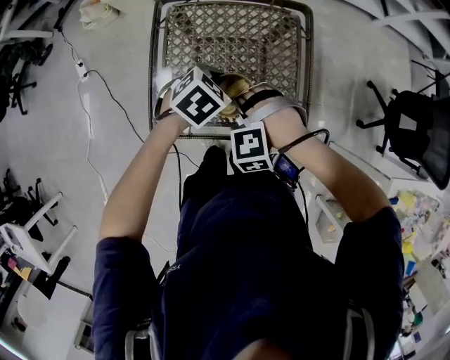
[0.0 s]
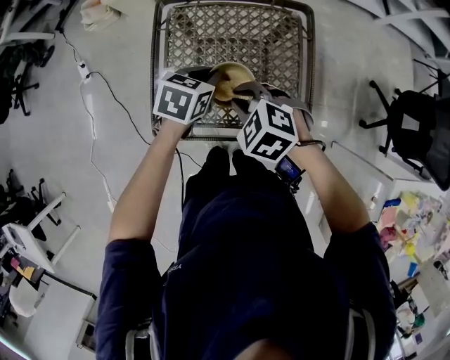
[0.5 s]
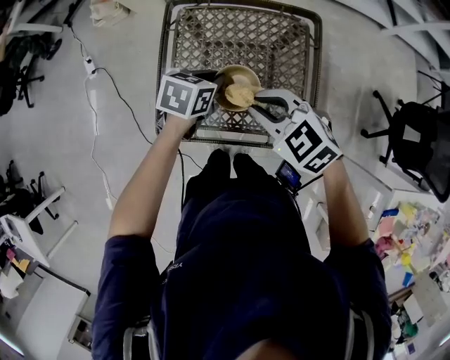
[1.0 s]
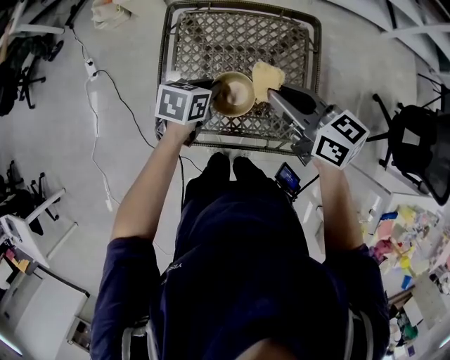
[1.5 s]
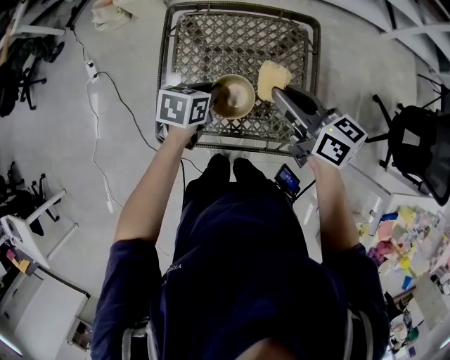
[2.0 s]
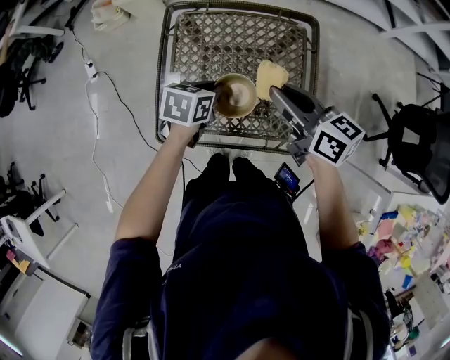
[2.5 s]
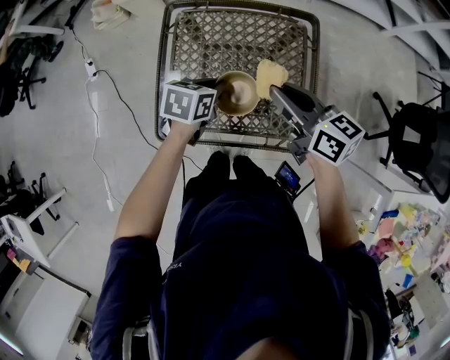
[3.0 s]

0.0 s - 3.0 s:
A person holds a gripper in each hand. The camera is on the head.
0.0 s - 1.5 s: The right gripper is displaced upward by approximately 15 cm, and rotates around the line of its fingers by roughly 90 degrees, clockwise from behind. Meanwhile the left gripper rotates approximately 40 degrees.
1.5 s - 3.0 s: The grippers make only small movements.

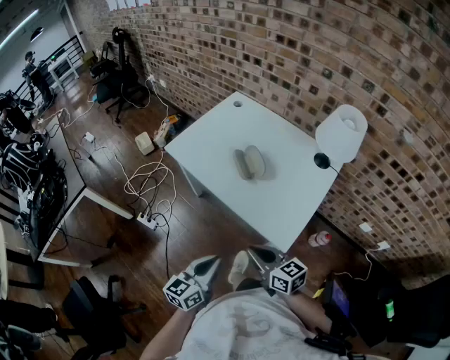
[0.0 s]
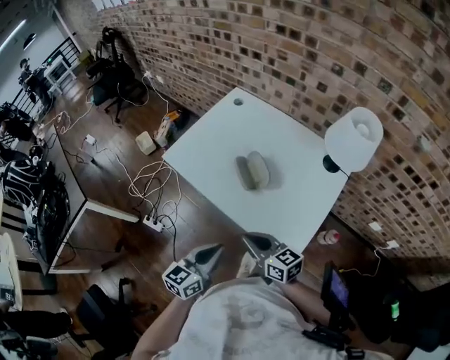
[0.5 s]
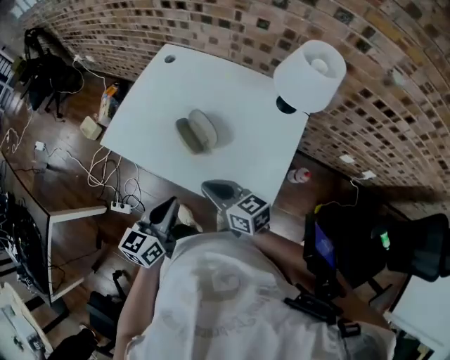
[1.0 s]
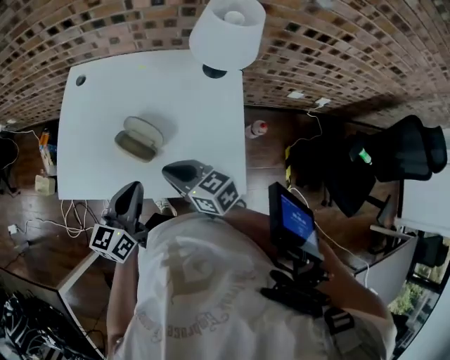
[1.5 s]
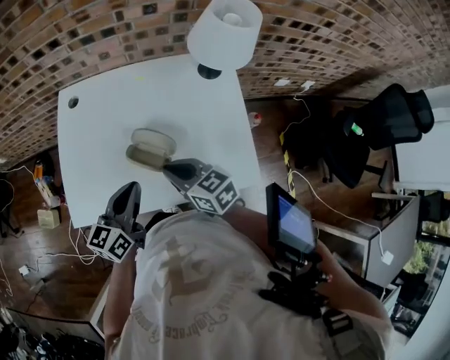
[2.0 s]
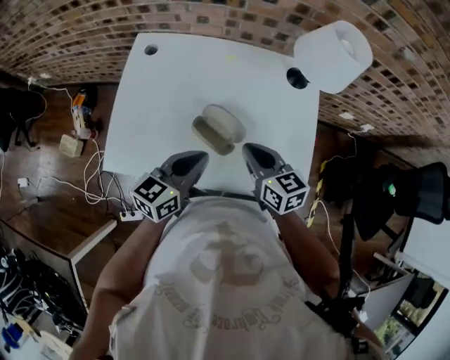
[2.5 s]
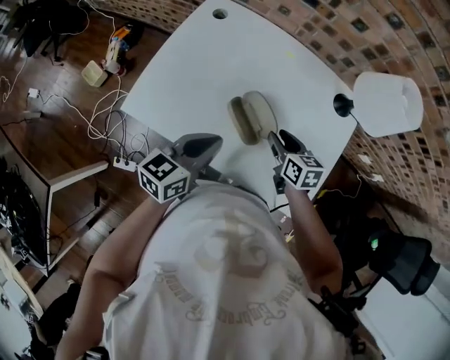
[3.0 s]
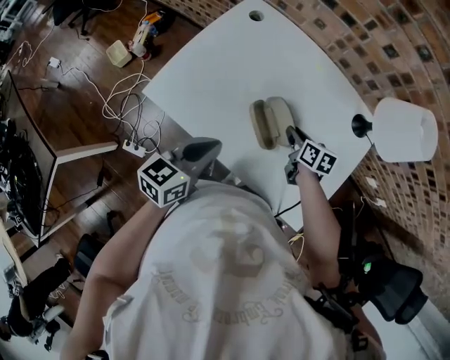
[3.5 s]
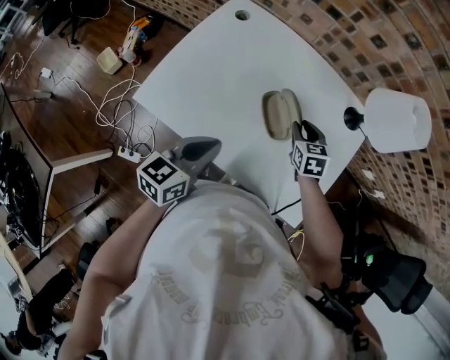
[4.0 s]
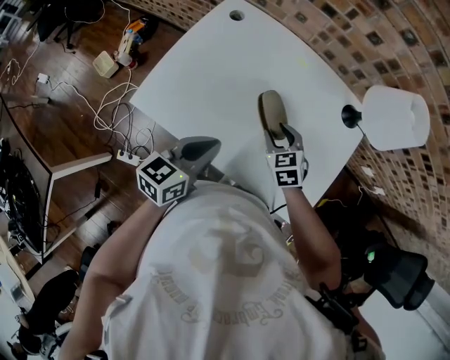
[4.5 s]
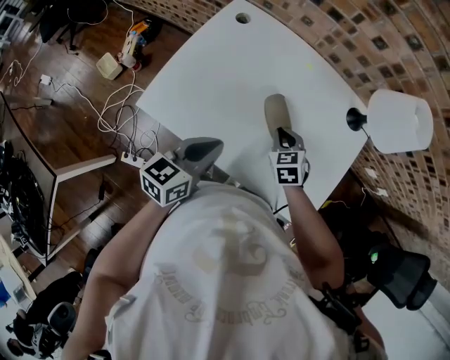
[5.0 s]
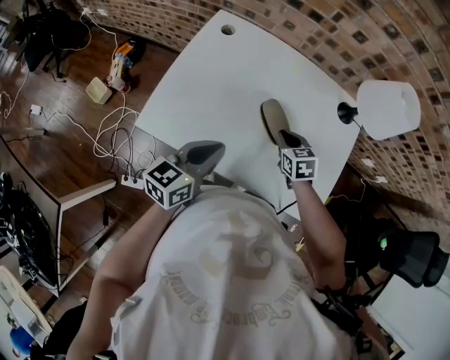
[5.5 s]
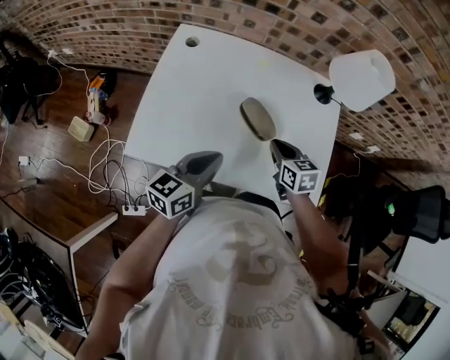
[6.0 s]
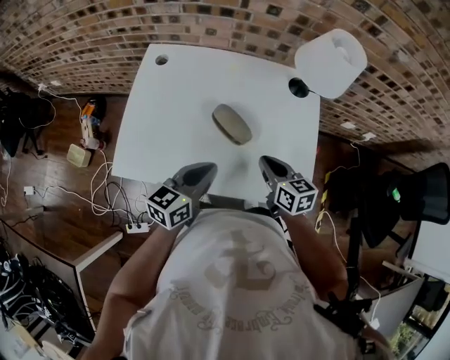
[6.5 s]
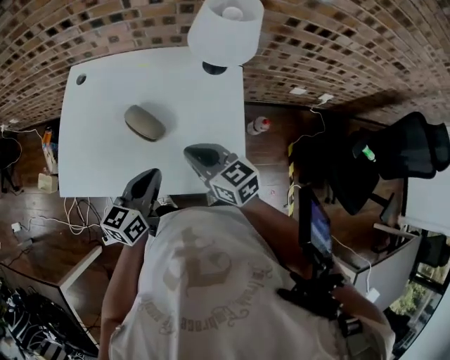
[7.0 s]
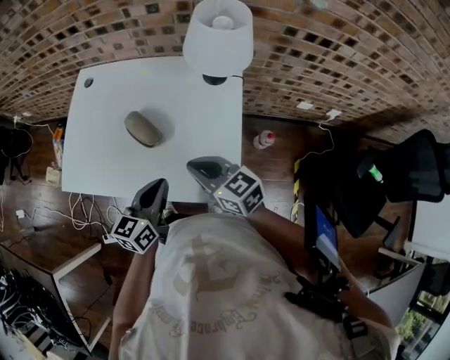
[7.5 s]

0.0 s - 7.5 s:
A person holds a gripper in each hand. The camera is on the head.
0.0 s - 2.0 s: The right gripper ends up roughly 30 cm from where it was, and swivels approximately 40 degrees. Meanwhile the left gripper shifts by approximately 40 cm, and changes its angle by some 40 degrees.
2.0 s - 4.0 s: The right gripper shifts about 20 cm forward, downward and to the right, changes its angle by some 30 degrees, and opens.
4.0 s - 5.5 s: The right gripper is displaced to the left by some 5 cm, and closes up.
5.5 s - 7.5 s: The left gripper moves to the right, some 25 cm. Meanwhile the right gripper heads to the right, backward and upward, covering about 25 cm, and tips its fingers upward by roughly 30 degrees.

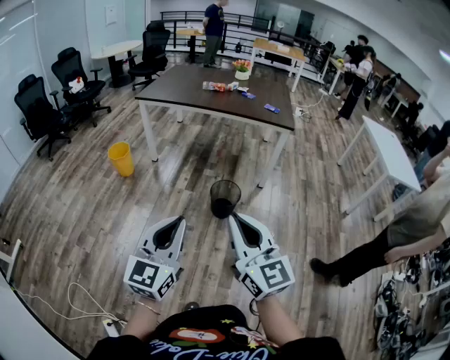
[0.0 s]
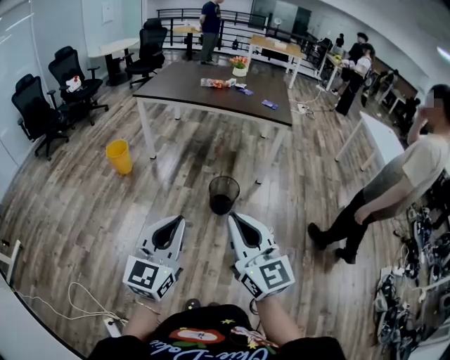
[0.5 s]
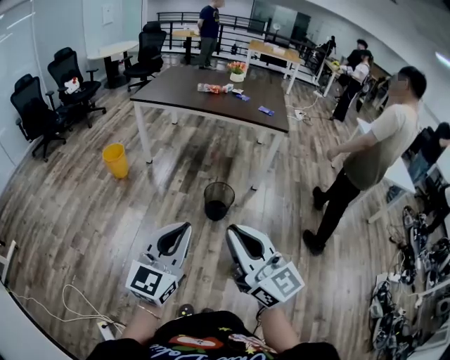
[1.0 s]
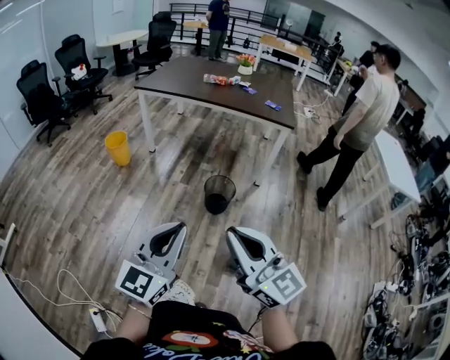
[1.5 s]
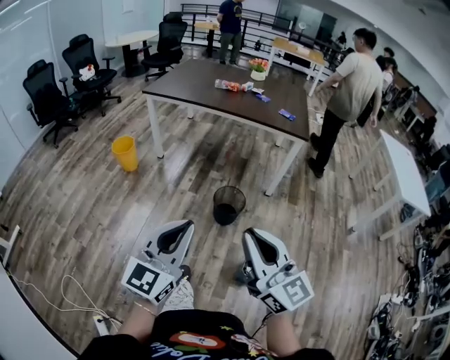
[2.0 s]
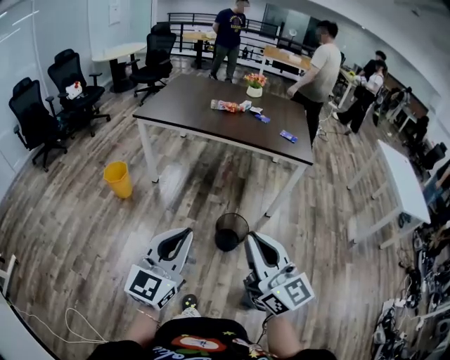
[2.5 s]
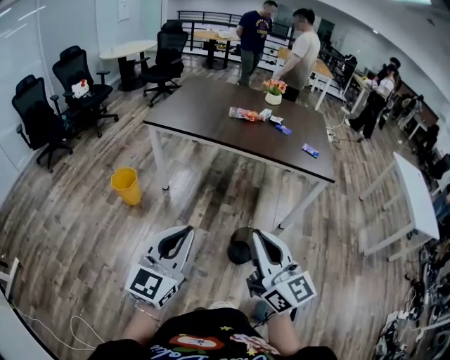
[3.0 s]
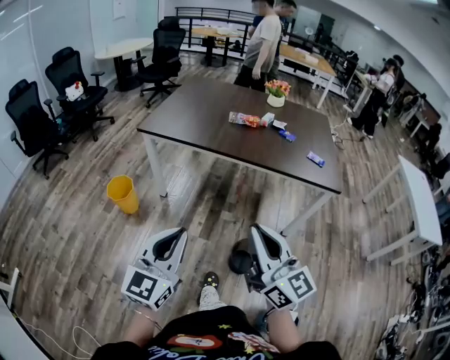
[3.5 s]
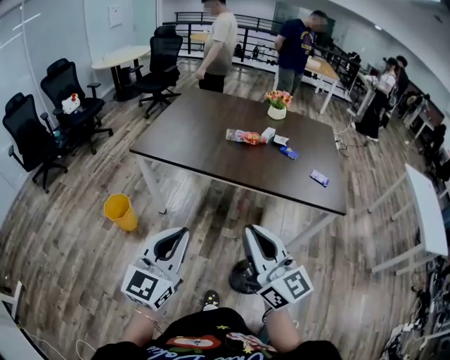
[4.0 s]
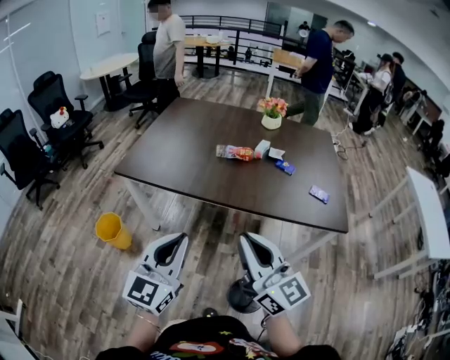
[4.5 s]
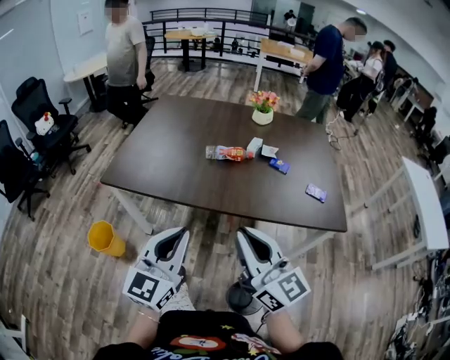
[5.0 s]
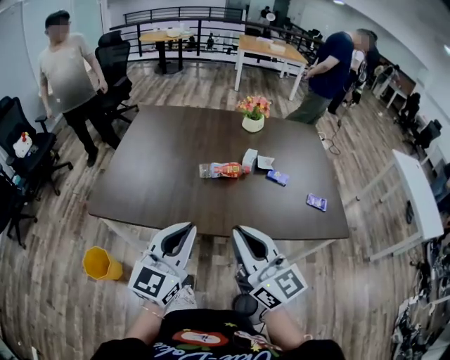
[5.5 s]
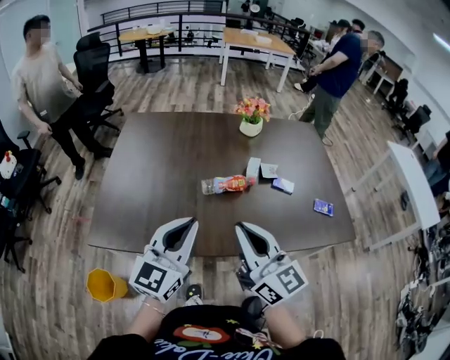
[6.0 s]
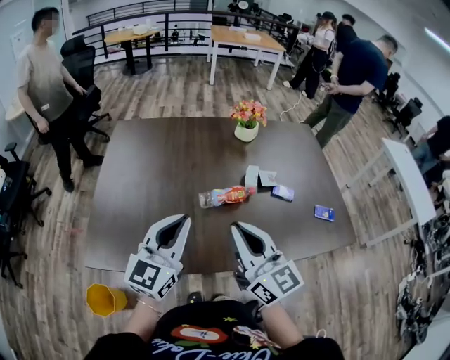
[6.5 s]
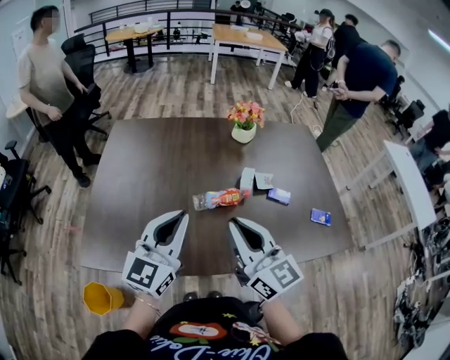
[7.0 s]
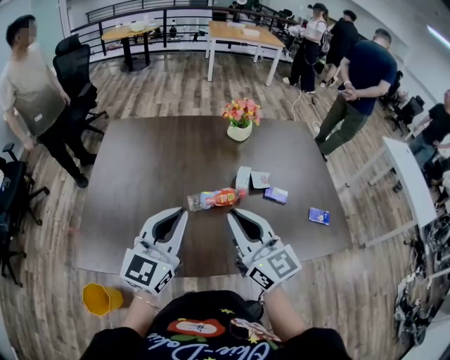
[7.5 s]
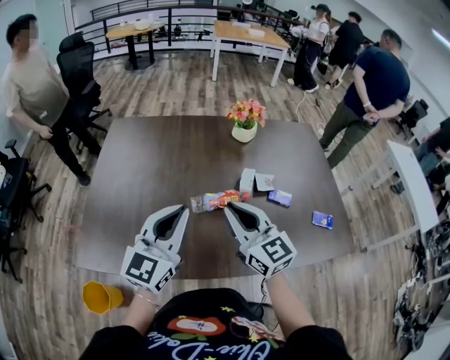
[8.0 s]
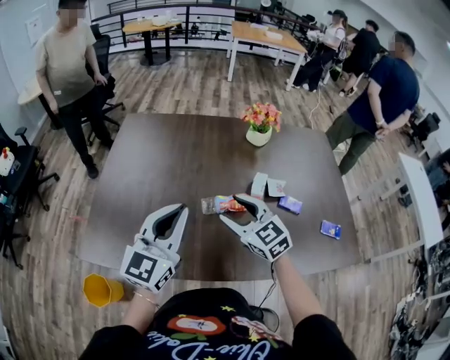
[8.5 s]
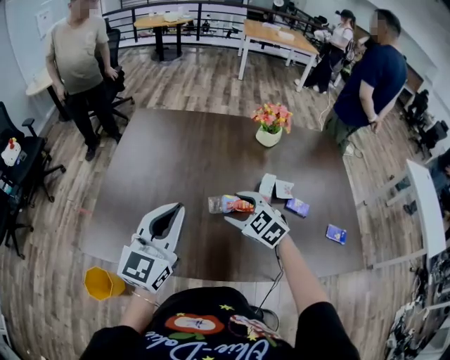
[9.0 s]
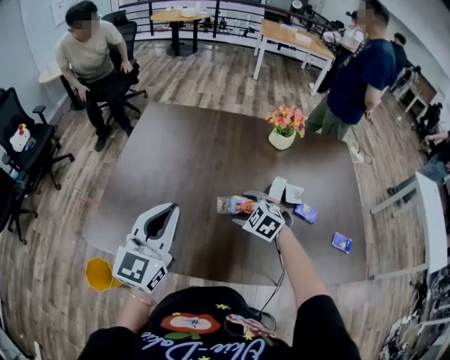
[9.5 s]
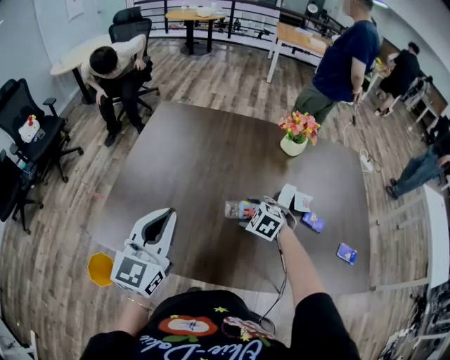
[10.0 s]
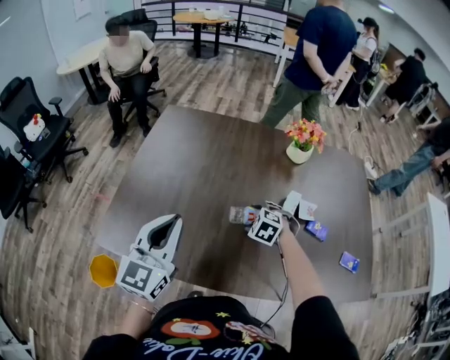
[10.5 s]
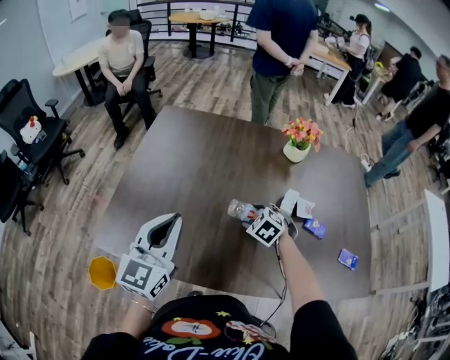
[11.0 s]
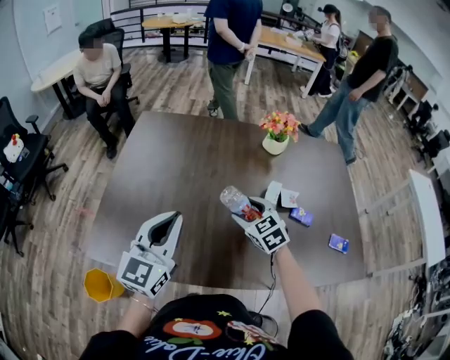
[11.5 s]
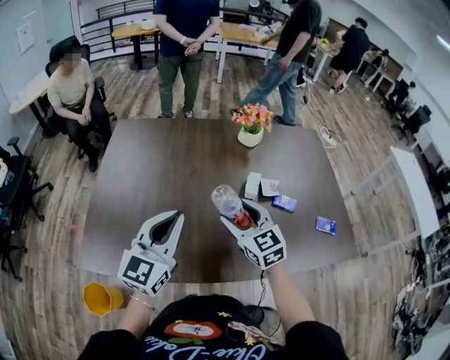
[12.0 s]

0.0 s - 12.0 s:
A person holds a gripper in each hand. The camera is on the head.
0.0 s - 2.0 s: Both grippers move forward, about 5 cm.
2.0 s - 4.0 s: Both grippers are carried forward, some 50 cm.
4.0 s - 6.0 s: The grippers both shift forward by approximately 40 cm. The left gripper swivels about 20 degrees.
6.0 s - 8.0 s: The two grippers go approximately 15 cm forward.
8.0 s - 10.0 s: The right gripper travels downward and forward by some 25 cm, tips its fingers downward by approximately 60 degrees, and opens up. The left gripper moves to the left, roughly 10 cm.
10.0 s - 12.0 s: The right gripper moves upward, some 15 cm, and tilts its fingers roughly 40 degrees upward; the left gripper is displaced to the right by approximately 5 cm.

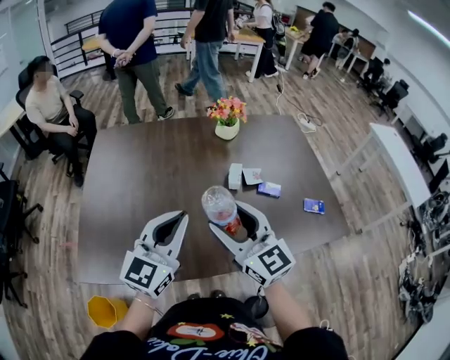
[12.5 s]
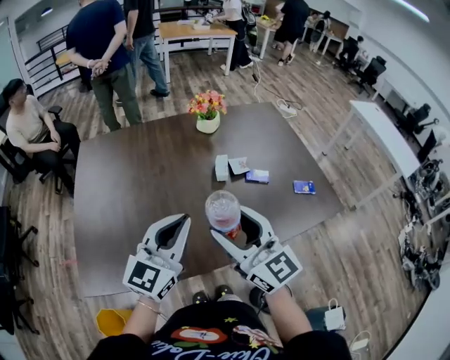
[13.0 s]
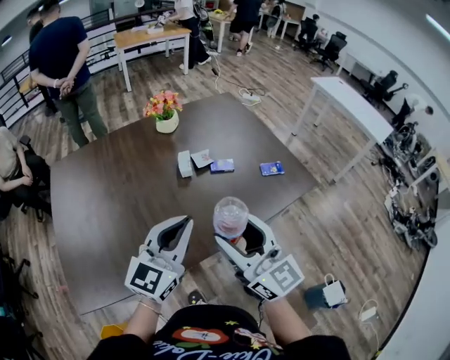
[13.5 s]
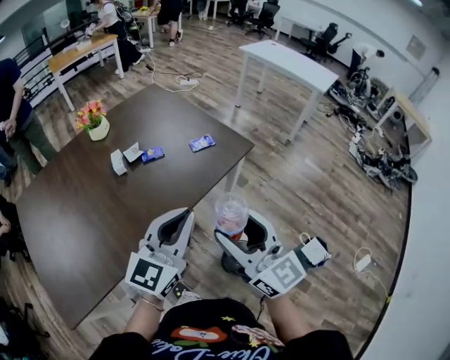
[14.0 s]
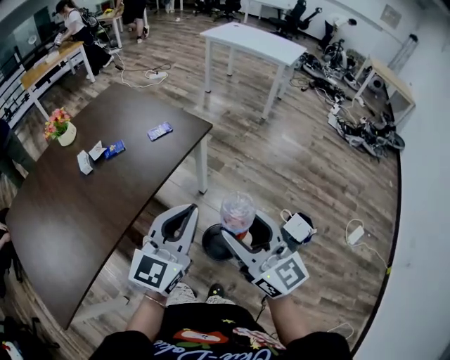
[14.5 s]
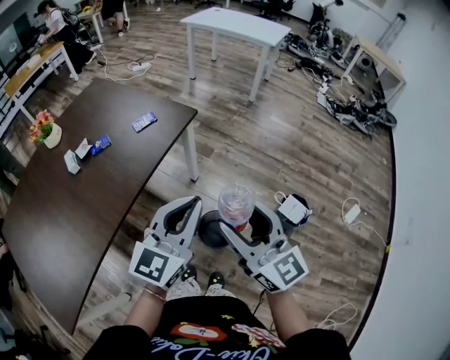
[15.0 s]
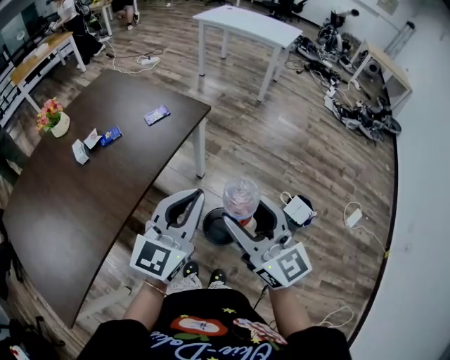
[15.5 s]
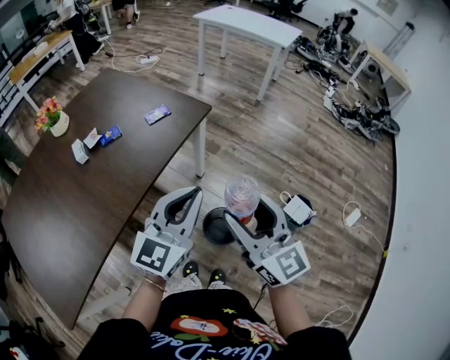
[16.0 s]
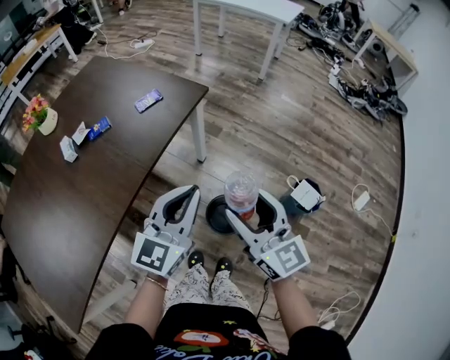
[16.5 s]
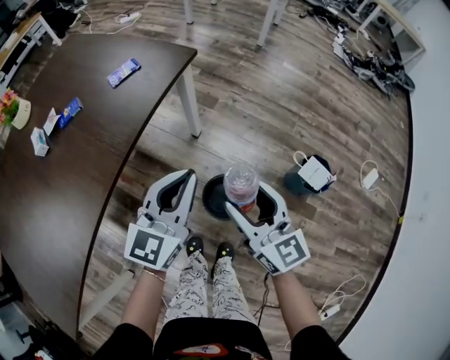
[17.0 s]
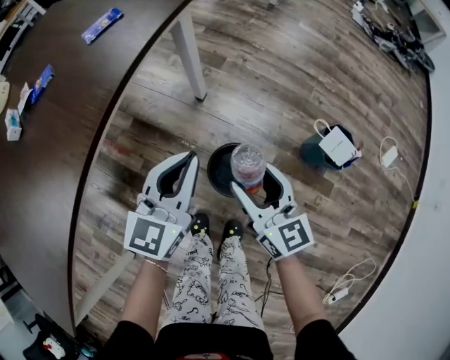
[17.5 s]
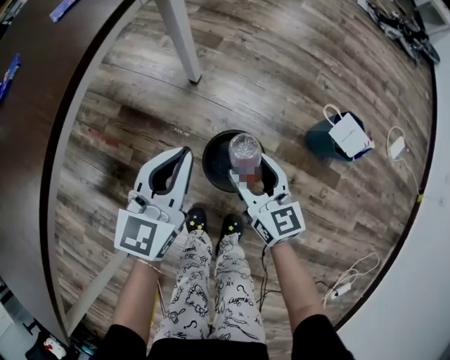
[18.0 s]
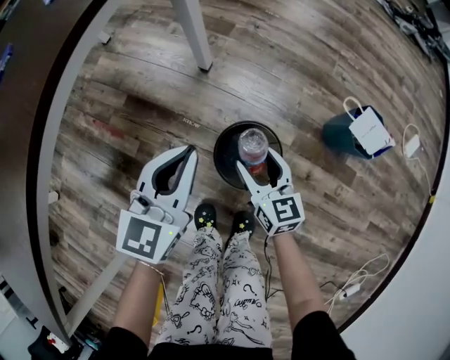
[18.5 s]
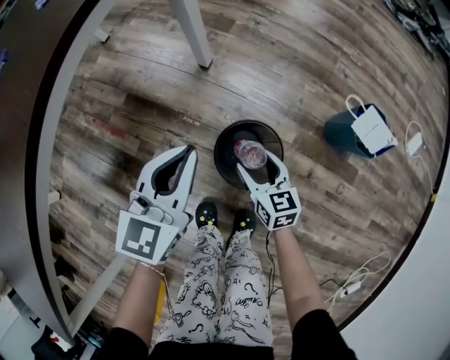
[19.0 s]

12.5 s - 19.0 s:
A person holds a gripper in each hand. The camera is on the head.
12.5 s - 14.5 s: The two grippers travel together, some 50 cm. The left gripper turns by some 50 degrees; the right gripper swivels roughly 50 degrees.
14.5 s - 17.0 s: The two grippers go about 20 cm downward.
17.0 s - 19.0 s: The right gripper heads downward, covering about 40 cm, and turns by some 30 degrees. The left gripper shifts approximately 25 cm downward.